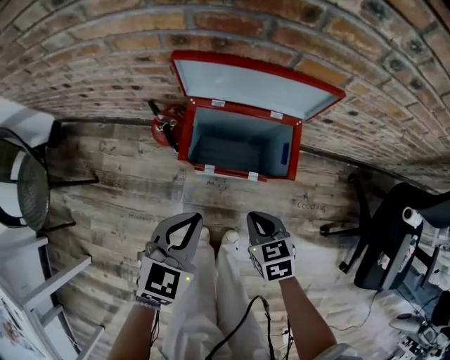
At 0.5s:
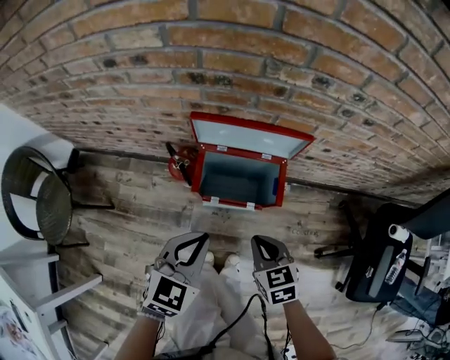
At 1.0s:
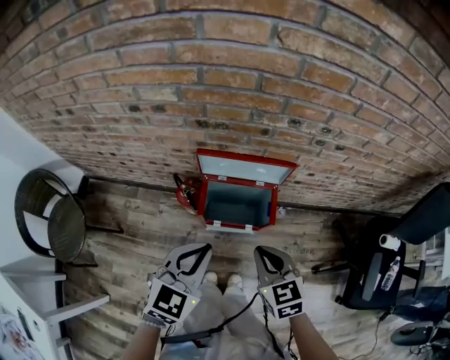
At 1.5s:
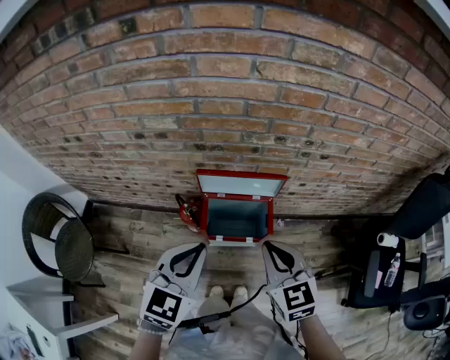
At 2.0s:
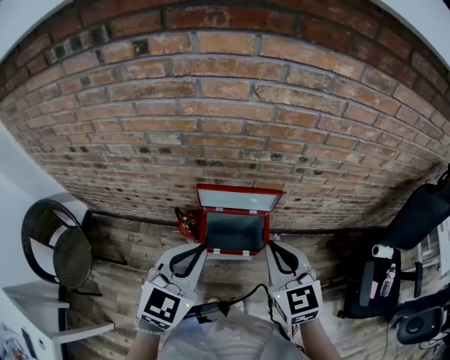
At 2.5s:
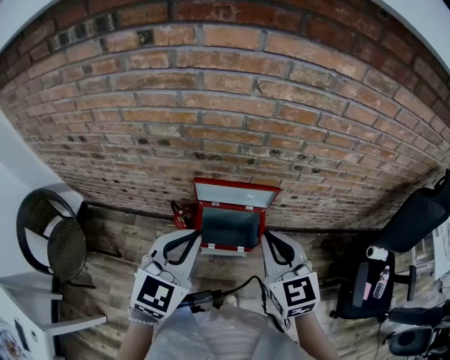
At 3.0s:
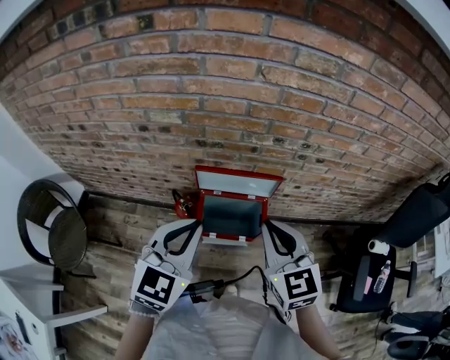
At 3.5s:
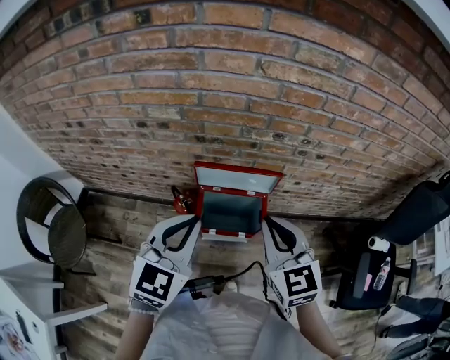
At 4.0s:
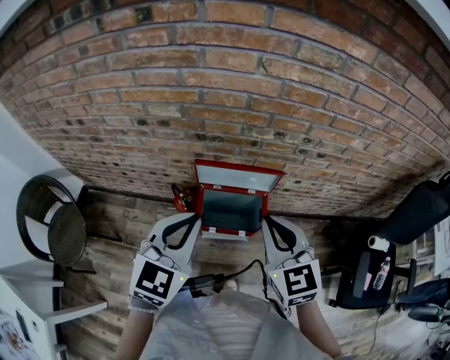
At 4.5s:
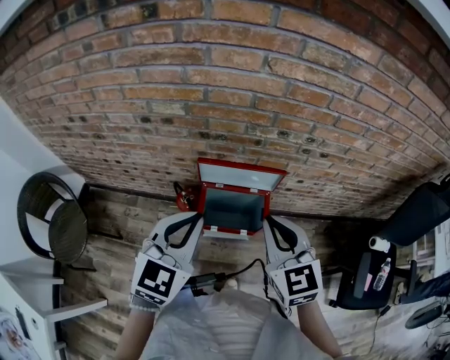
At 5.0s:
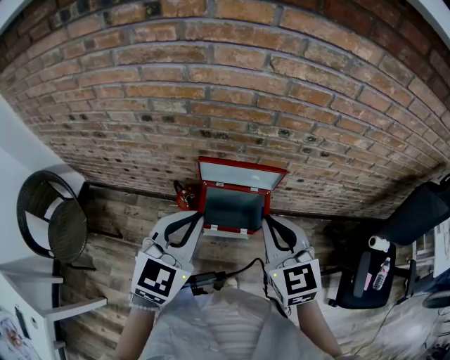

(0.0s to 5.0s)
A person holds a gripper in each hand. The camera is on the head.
0.0s - 2.5s: The two grippers go approximately 40 cm upward. The right gripper tilts its fingers roughly 30 degrees upward. Meanwhile the left gripper rotates approximately 20 degrees.
2.5s - 5.0s: The grippers stay close to where they were, moving slightly.

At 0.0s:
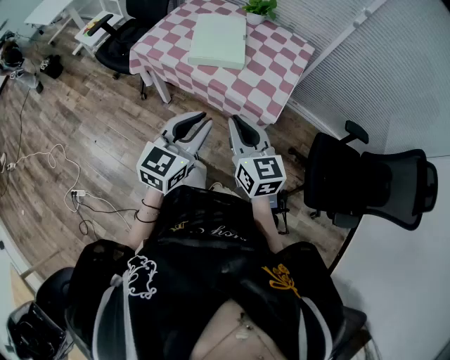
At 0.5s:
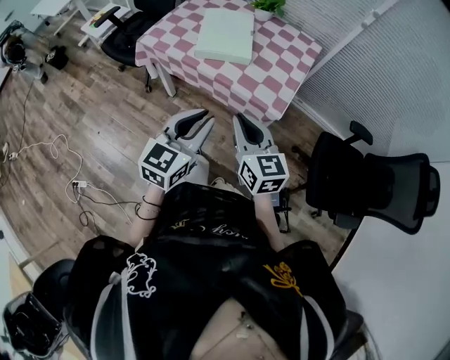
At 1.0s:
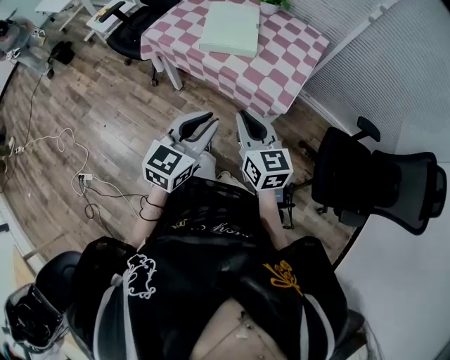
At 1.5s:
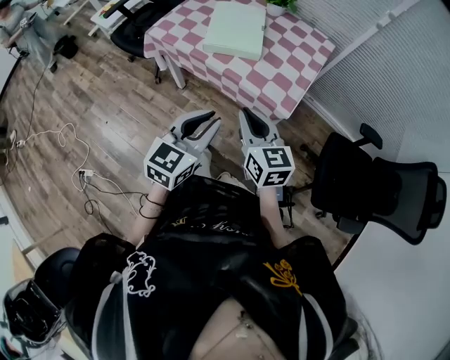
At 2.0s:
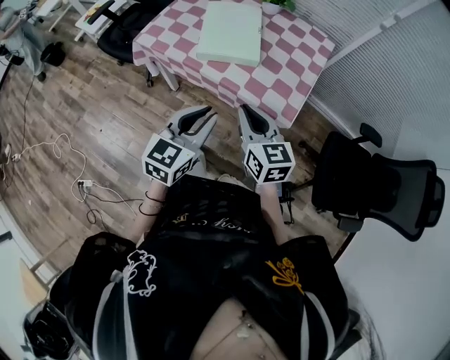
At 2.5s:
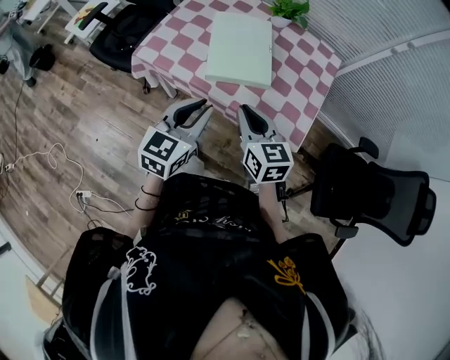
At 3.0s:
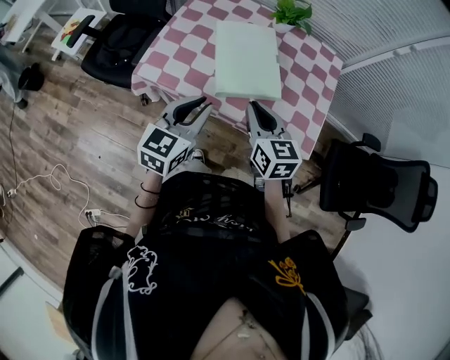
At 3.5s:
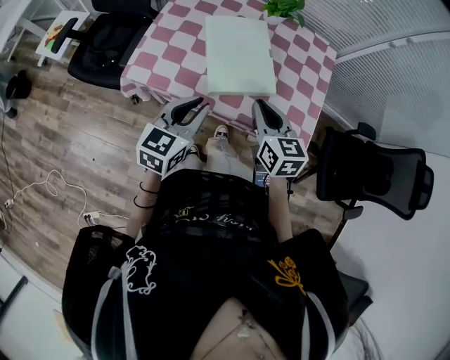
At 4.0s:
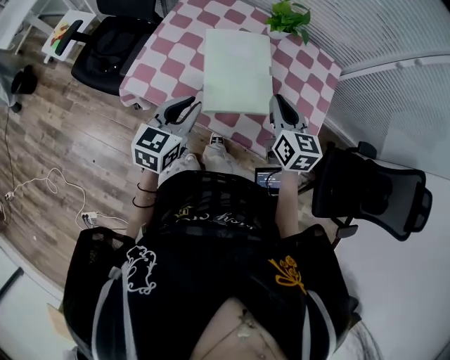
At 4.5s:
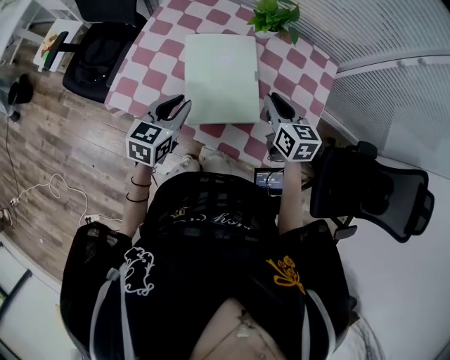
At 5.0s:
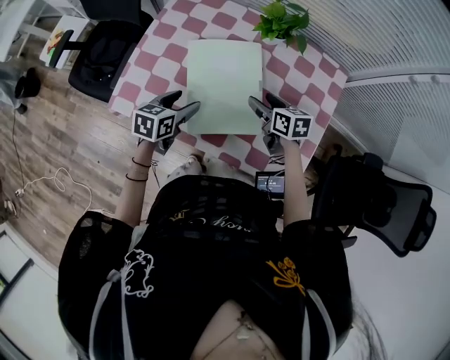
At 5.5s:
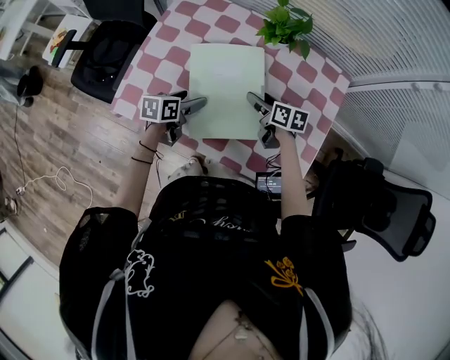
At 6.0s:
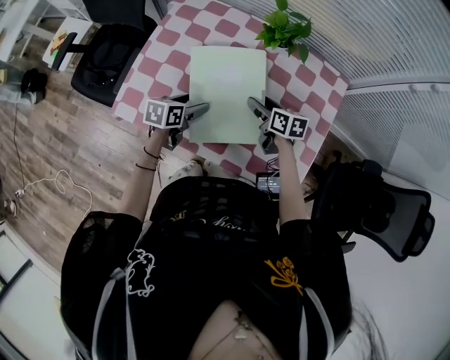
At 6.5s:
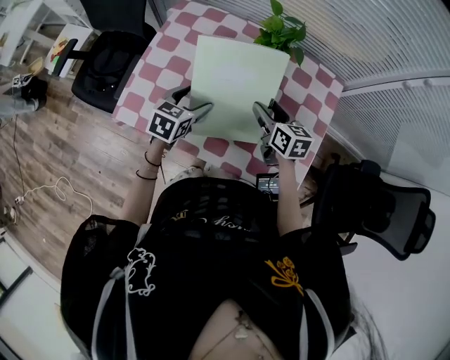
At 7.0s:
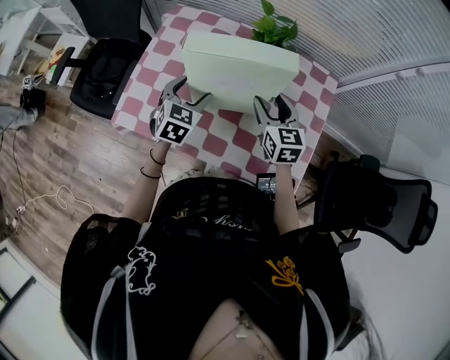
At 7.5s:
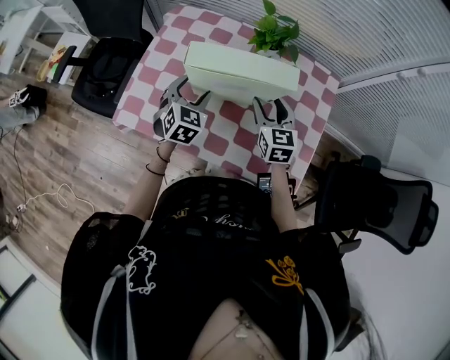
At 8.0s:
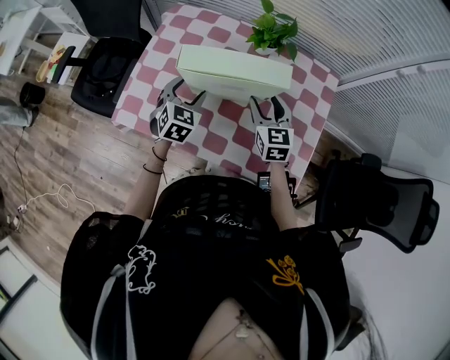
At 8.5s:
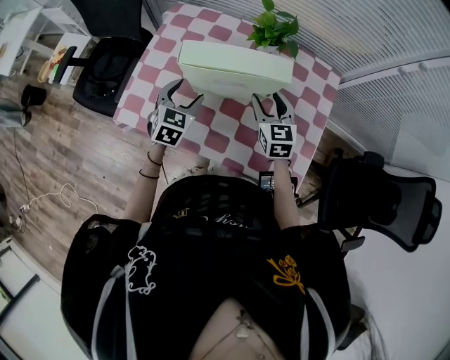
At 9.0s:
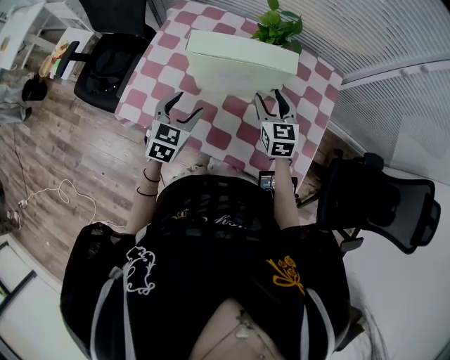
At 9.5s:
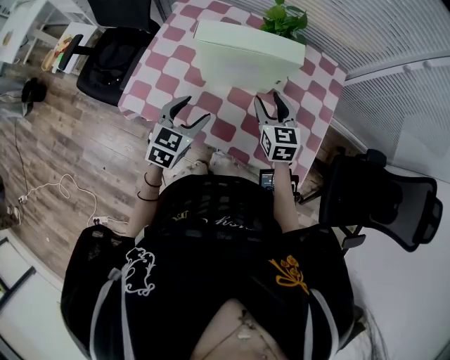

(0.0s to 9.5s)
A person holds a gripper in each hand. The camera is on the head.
0.0s - 2.0s: The grippers both shift forward by approximately 10 cm.
2.0s - 4.0s: The right gripper goes approximately 30 cm forward; the left gripper goes about 30 cm forward and to the left.
4.0s - 5.5s: Both grippers travel together downward and forward, approximately 25 cm. The right gripper swivels about 40 degrees, and opens up. Meanwhile the left gripper rotates about 40 degrees, and opens up.
5.5s - 7.5s: Both grippers move upward, approximately 10 cm. The left gripper twists approximately 50 degrees clockwise, seen from behind; the right gripper changes its angle by about 50 degrees.
7.5s - 9.5s: The right gripper moves some 5 cm. The left gripper heads backward, covering some 10 cm.

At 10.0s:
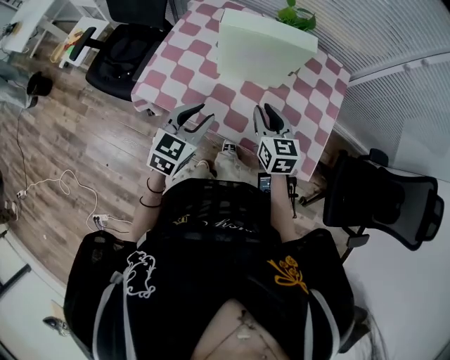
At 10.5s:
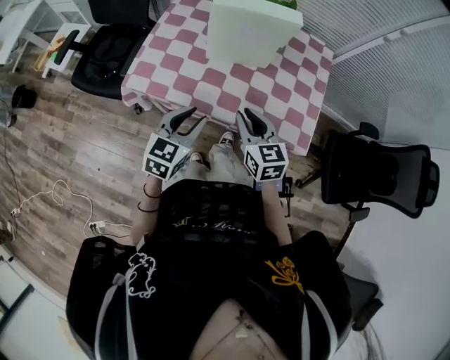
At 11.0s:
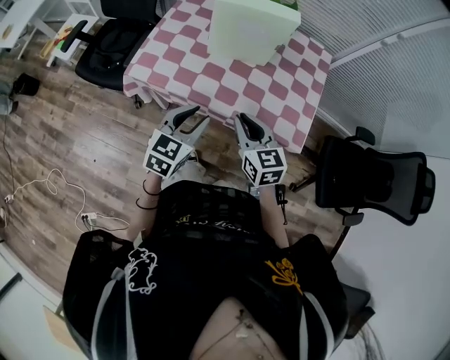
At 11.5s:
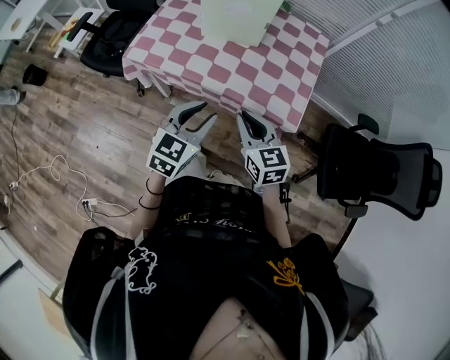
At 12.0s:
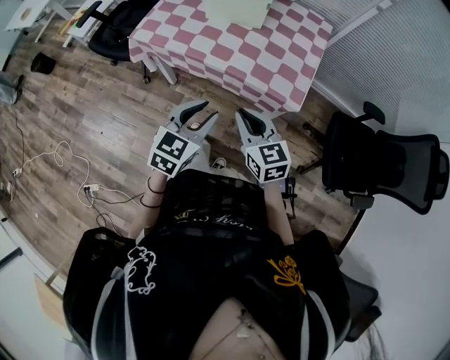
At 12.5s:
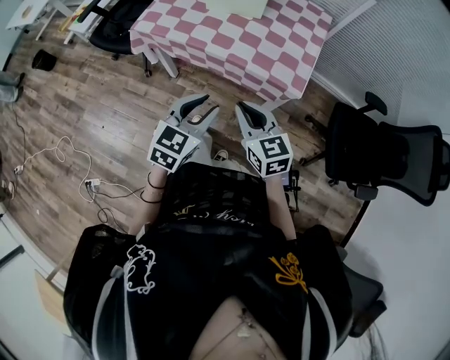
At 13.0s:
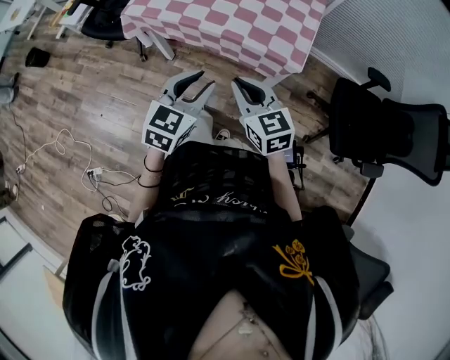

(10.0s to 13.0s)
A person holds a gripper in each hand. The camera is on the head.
10.0s - 11.5s: The right gripper travels backward by approximately 20 cm. Meanwhile the left gripper heads backward and to the right, covering about 20 cm.
11.5s - 13.0s: Both grippers travel together backward, about 15 cm.

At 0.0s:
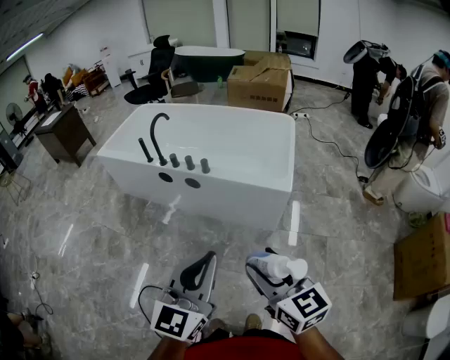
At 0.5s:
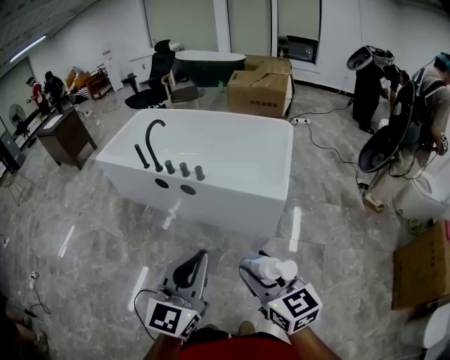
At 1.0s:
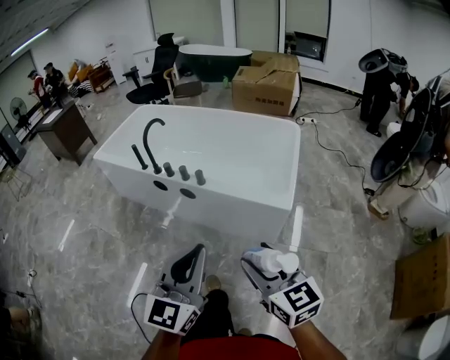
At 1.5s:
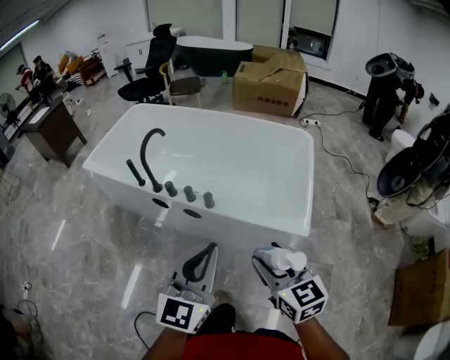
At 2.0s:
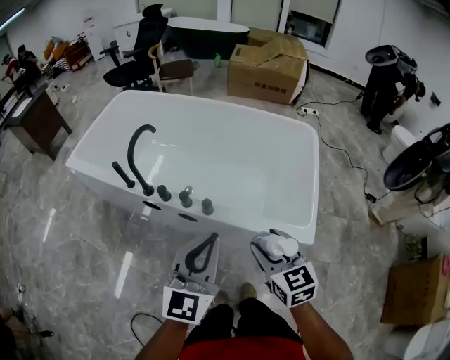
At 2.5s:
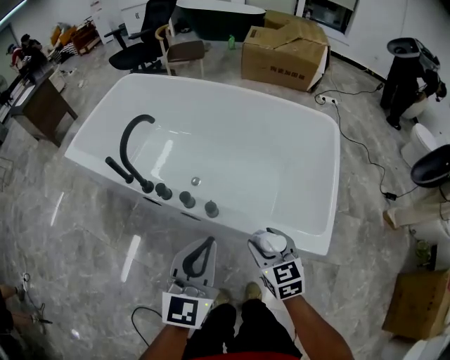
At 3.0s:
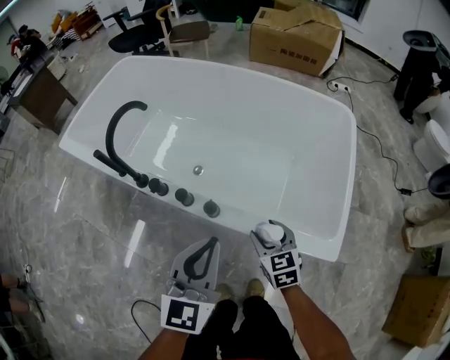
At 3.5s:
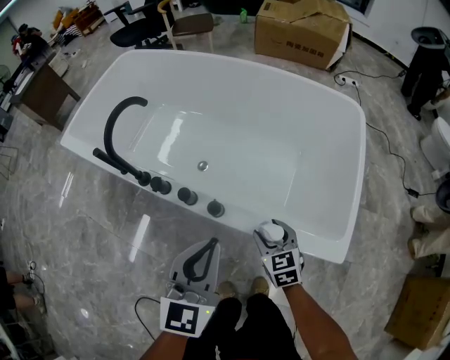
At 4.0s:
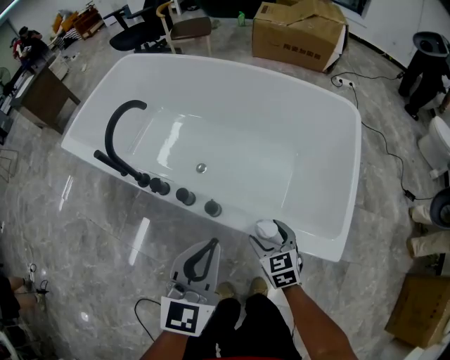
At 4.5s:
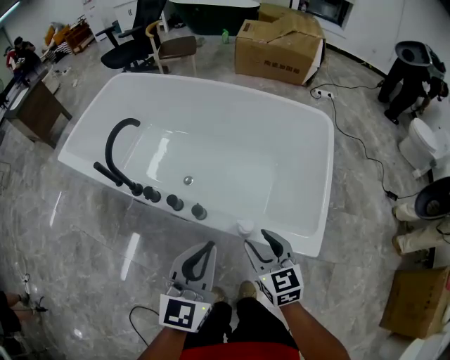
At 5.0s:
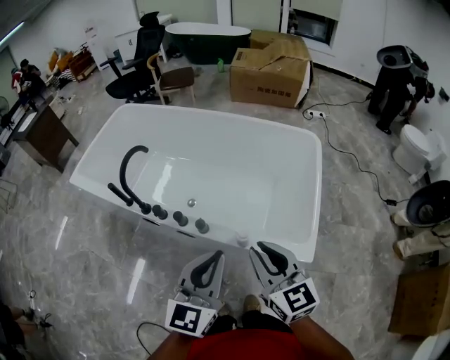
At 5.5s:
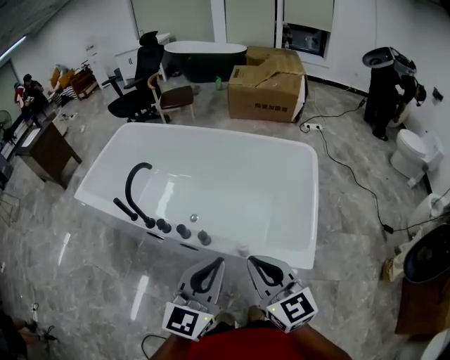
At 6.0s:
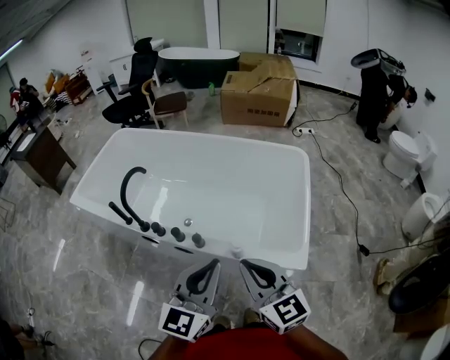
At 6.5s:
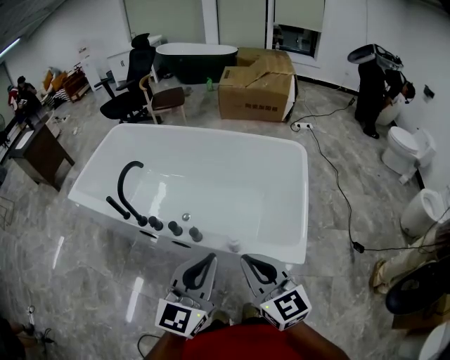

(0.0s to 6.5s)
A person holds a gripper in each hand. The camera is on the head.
0.0s - 2.0s: The two grippers travel together, forward, approximately 50 cm.
2.0s - 4.5s: Both grippers travel together downward and forward, approximately 15 cm.
4.5s - 6.5s: The left gripper shifts some 15 cm upward and backward, while the right gripper heads upward and backward, covering roughly 20 cm, and closes up.

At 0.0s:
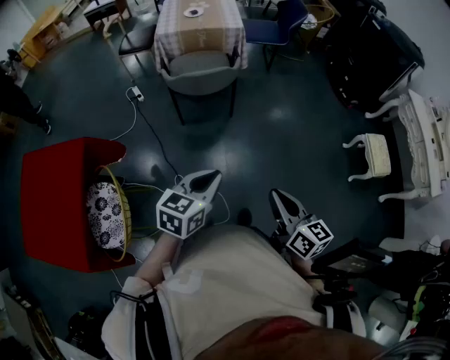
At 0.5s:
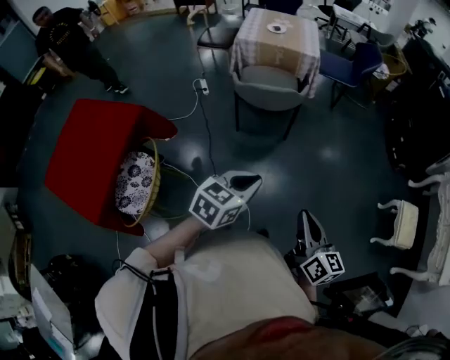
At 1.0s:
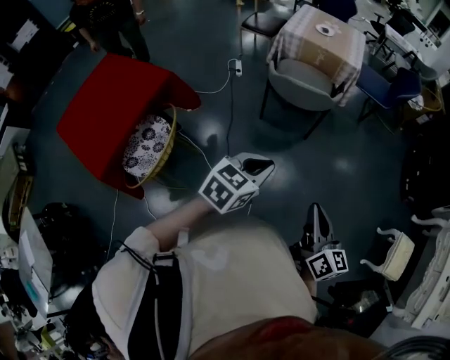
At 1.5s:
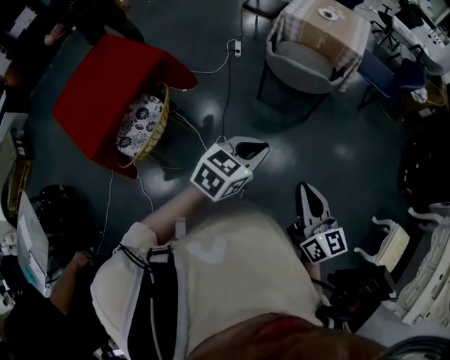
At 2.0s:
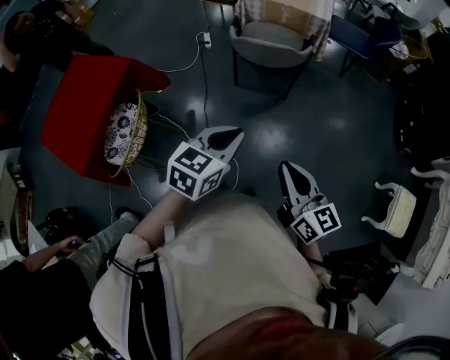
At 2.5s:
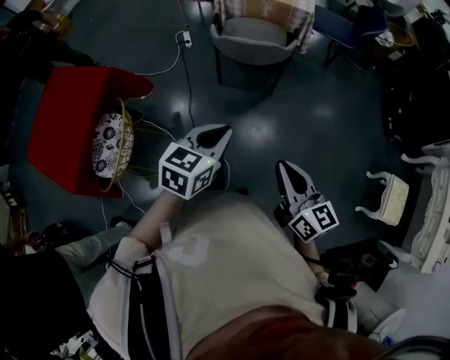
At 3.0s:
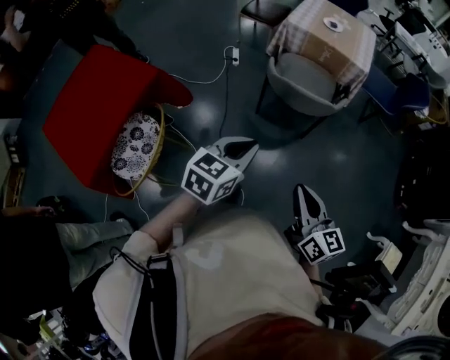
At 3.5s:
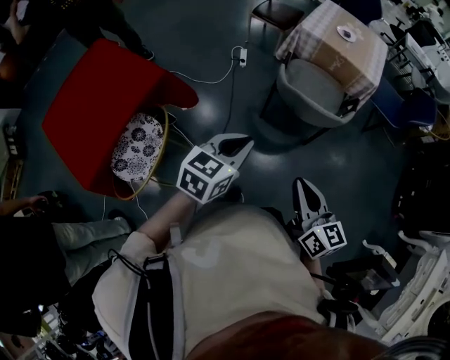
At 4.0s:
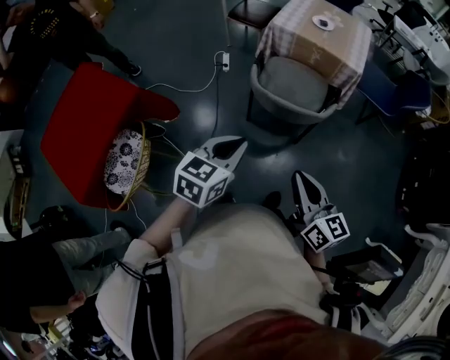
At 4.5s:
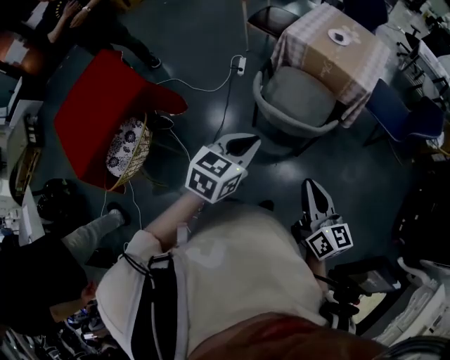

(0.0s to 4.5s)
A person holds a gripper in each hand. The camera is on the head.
0.0s - 2.0s: The right gripper moves forward, approximately 5 cm, and swivels roughly 30 degrees. Meanwhile the left gripper travels to the right by roughly 5 cm.
2.0s - 4.5s: The grippers both shift forward by roughly 30 cm.
